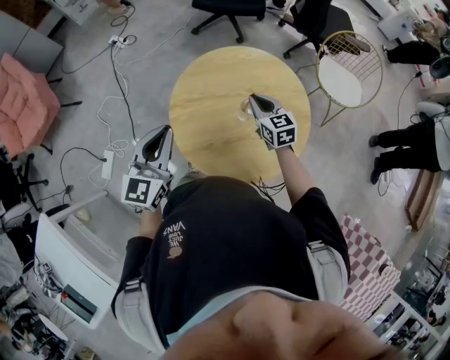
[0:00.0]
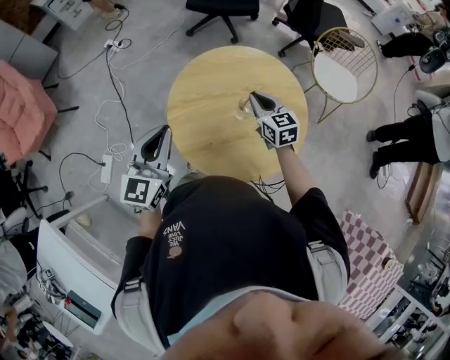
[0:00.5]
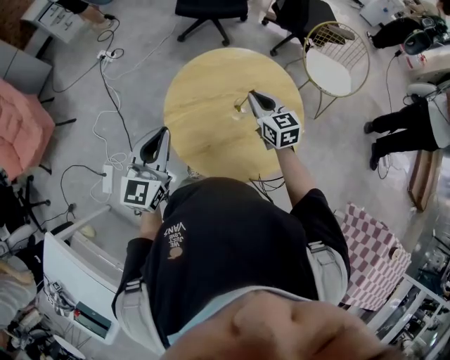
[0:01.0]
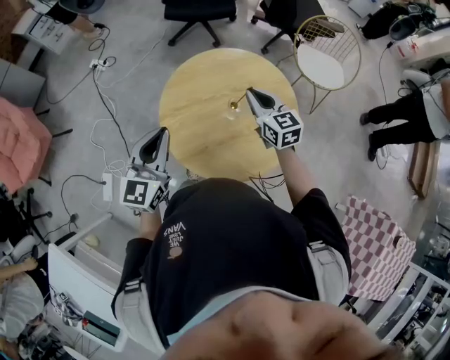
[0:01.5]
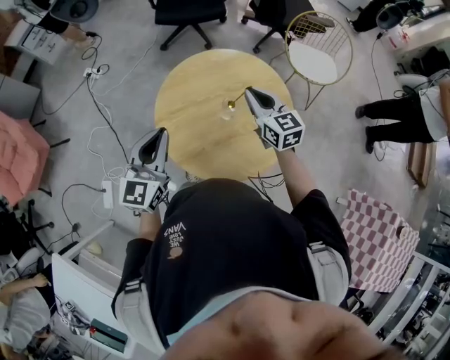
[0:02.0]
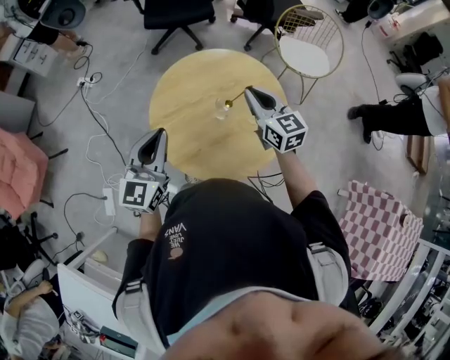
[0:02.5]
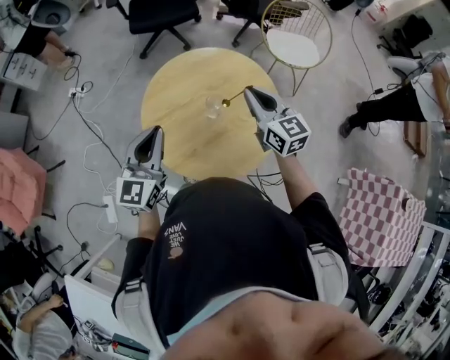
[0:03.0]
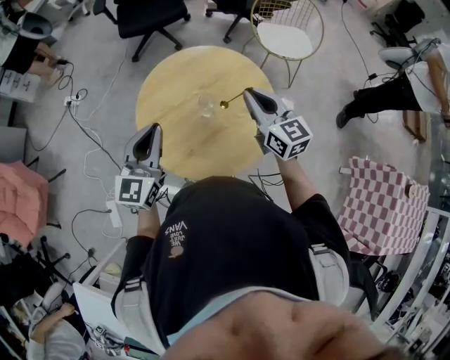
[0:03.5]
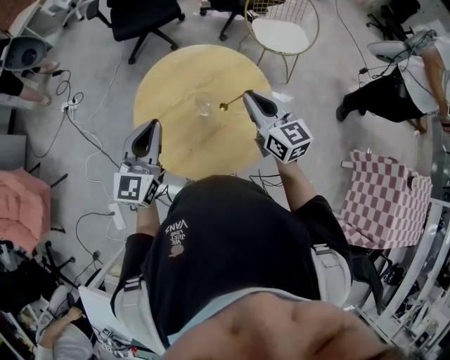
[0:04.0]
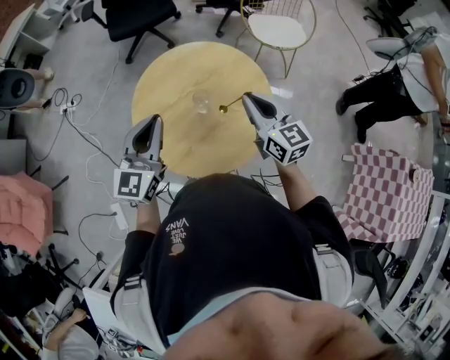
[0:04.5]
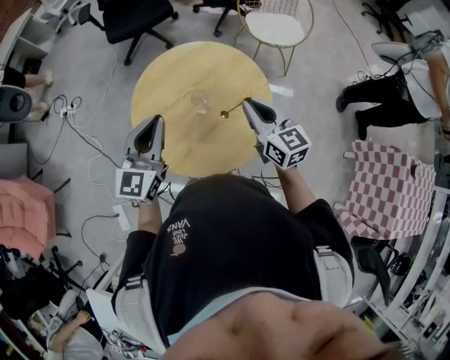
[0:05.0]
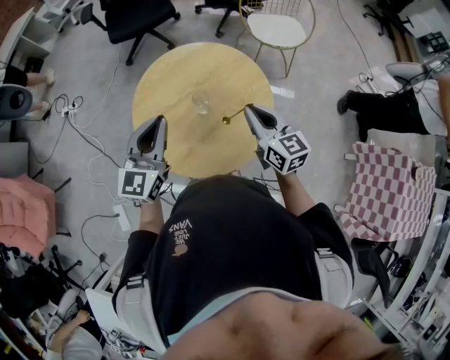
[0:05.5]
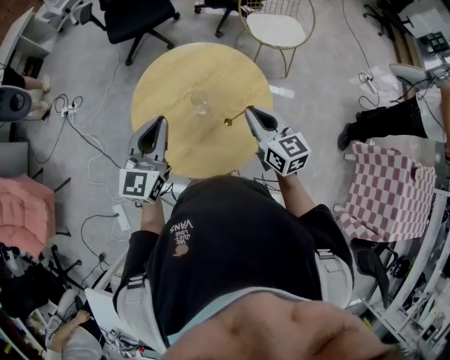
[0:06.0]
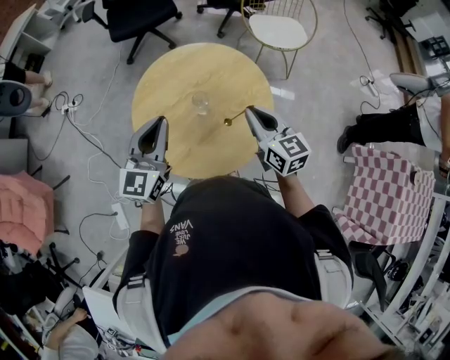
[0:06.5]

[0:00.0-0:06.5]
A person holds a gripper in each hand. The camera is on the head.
0.0 to 2.0 s: The right gripper travels upward by roughly 10 cm.
2.0 to 4.5 s: The right gripper goes some 10 cm to the right and backward, while the left gripper moves to the right and forward, about 10 cm.
4.5 to 6.5 s: The grippers make only small movements.

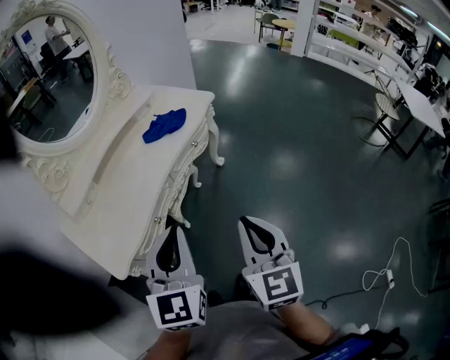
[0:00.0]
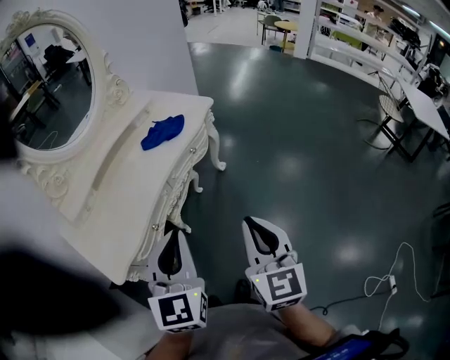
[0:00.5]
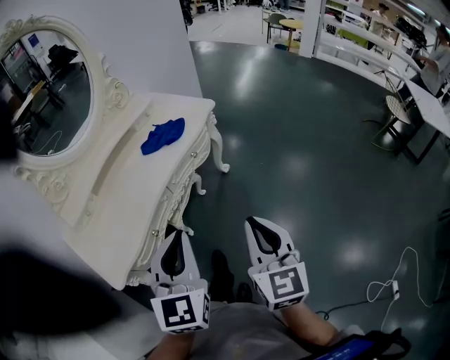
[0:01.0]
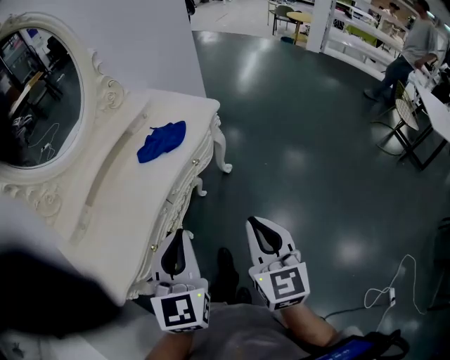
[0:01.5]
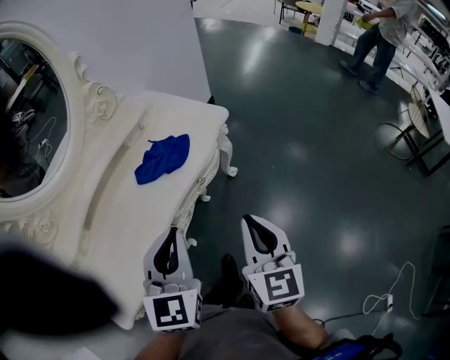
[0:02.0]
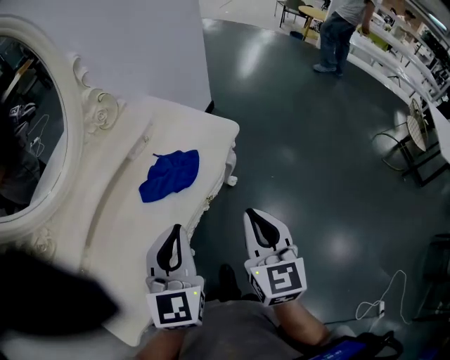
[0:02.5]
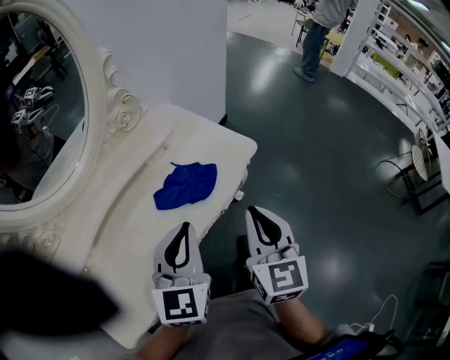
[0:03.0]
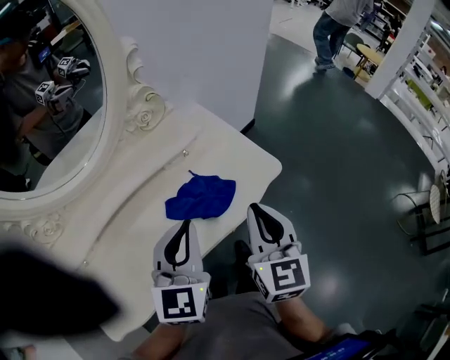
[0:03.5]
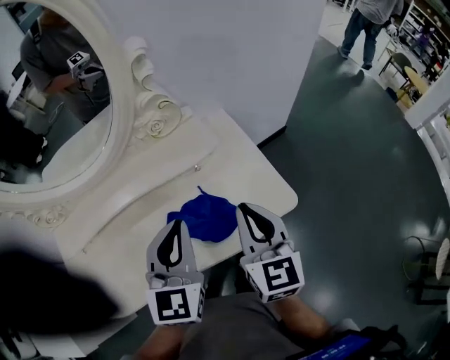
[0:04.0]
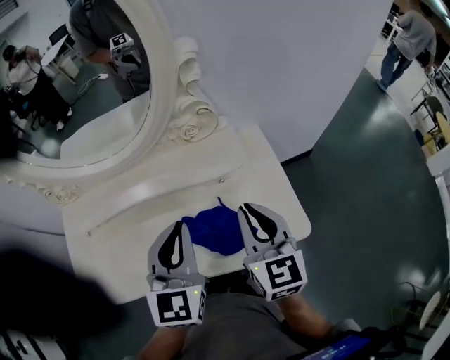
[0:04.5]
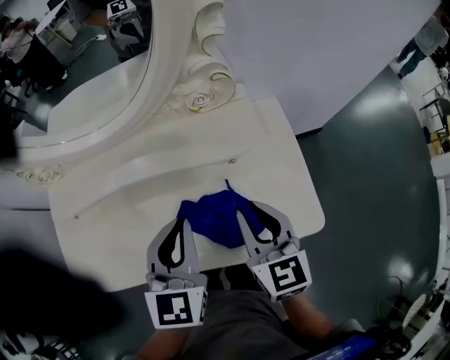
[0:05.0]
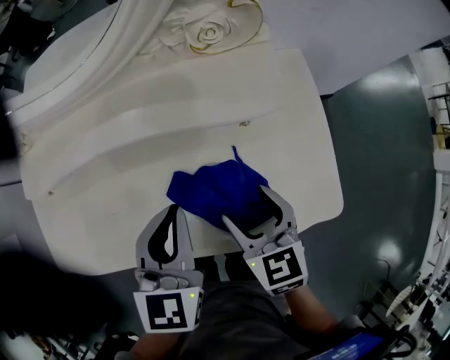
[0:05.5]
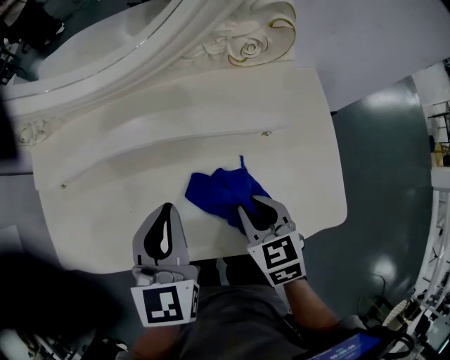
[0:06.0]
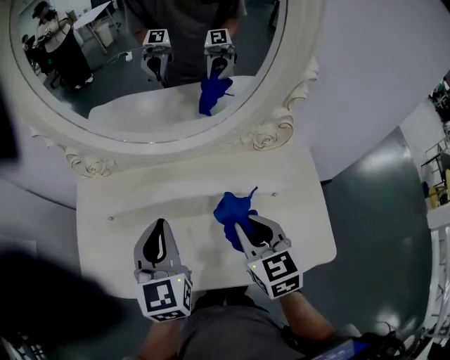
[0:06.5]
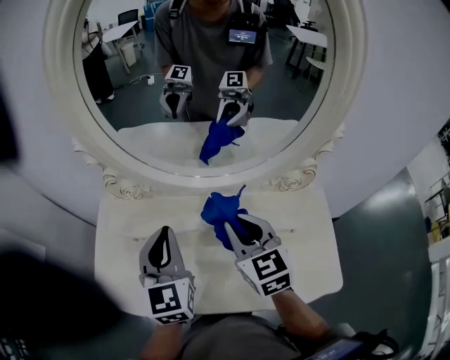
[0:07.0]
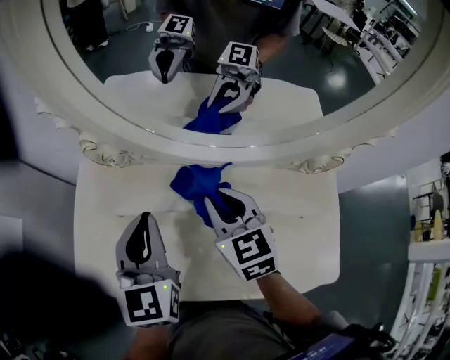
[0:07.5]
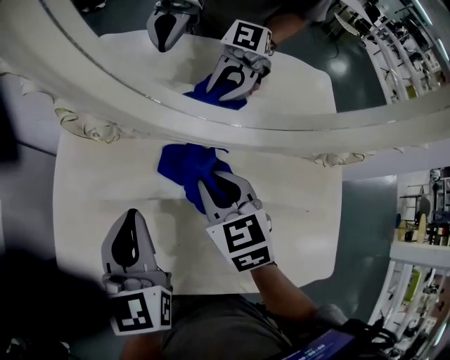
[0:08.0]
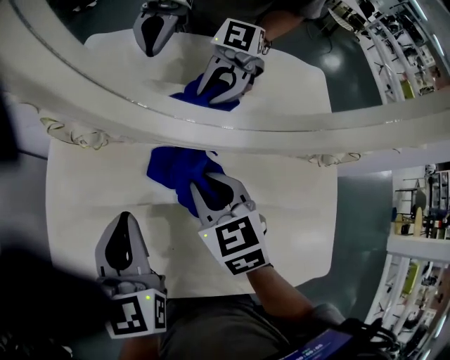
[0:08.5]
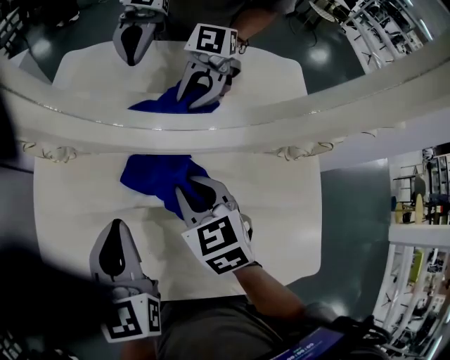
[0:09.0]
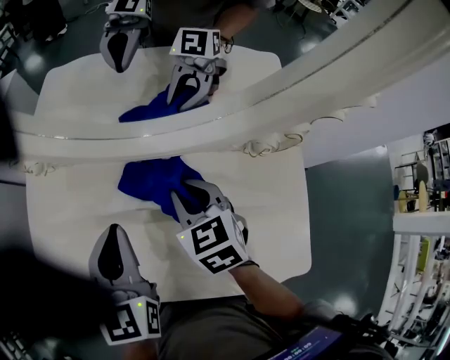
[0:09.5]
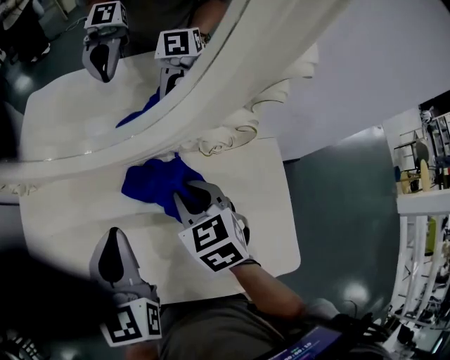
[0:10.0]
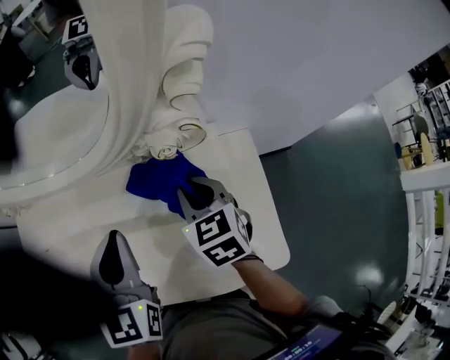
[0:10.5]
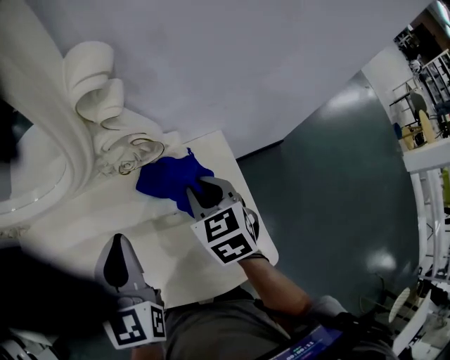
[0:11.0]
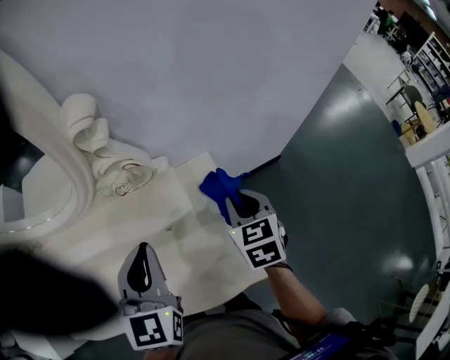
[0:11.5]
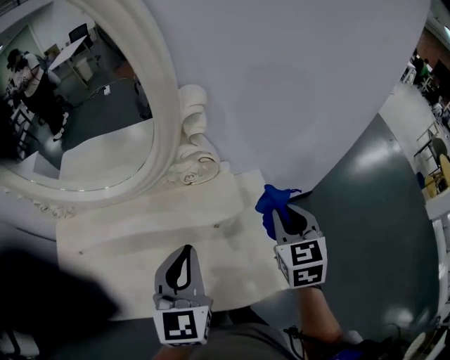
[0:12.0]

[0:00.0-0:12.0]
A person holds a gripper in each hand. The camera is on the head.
0.0 to 2.0 s: The two grippers go approximately 30 cm forward.
2.0 to 4.0 s: The right gripper changes place by some 35 cm, and swivels approximately 30 degrees; the left gripper ends up approximately 30 cm from where it was, and turns by some 30 degrees.
4.0 to 6.0 s: The right gripper heads downward, covering roughly 20 cm, angles its fingers downward, by about 30 degrees, and opens, then closes once more, while the left gripper ends up some 20 cm from where it was, and rotates roughly 30 degrees.
6.0 to 8.0 s: The left gripper heads to the left, upward and forward, covering approximately 25 cm, and rotates some 20 degrees. Meanwhile the right gripper goes roughly 35 cm forward, to the left and upward, and swivels roughly 20 degrees.
8.0 to 10.0 s: The grippers stay close to where they were, moving slightly.
10.0 to 12.0 s: The right gripper travels to the right by roughly 25 cm, and changes its angle by approximately 30 degrees. Meanwhile the left gripper is displaced to the right and backward by about 20 cm.

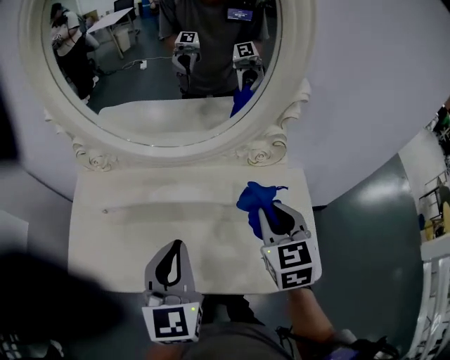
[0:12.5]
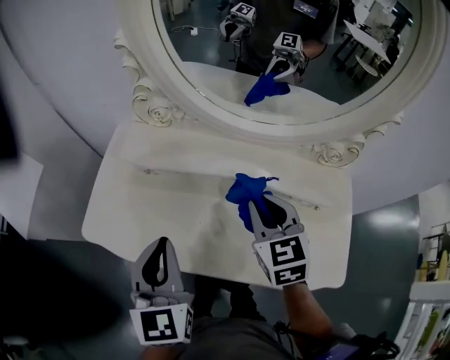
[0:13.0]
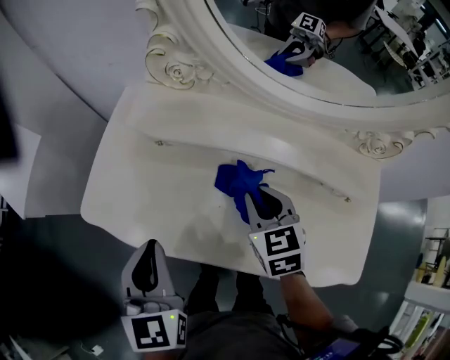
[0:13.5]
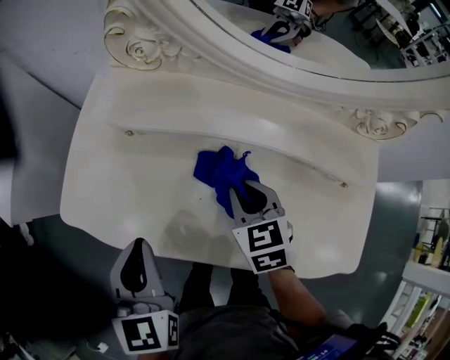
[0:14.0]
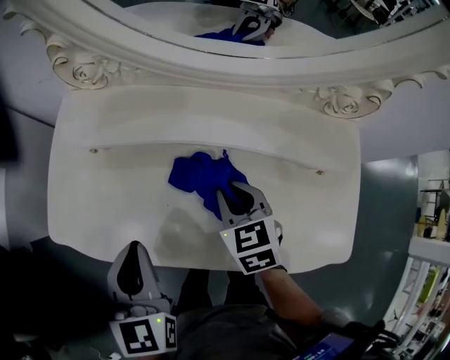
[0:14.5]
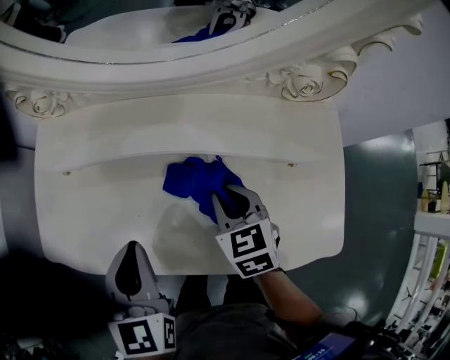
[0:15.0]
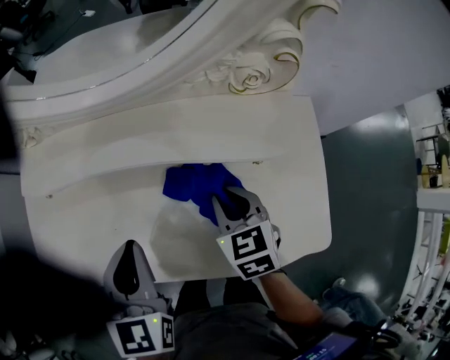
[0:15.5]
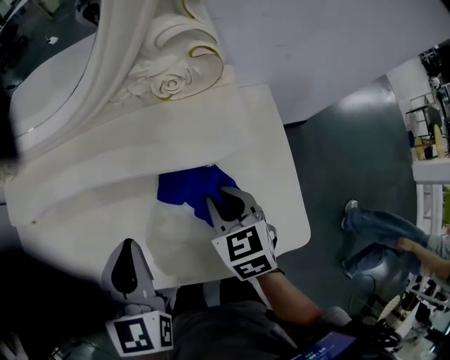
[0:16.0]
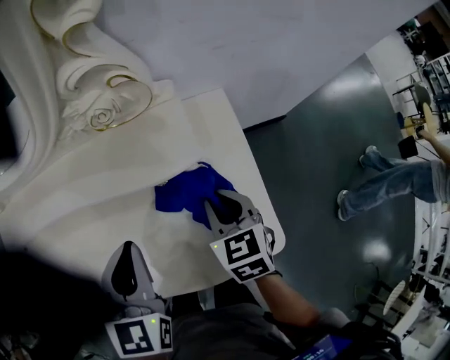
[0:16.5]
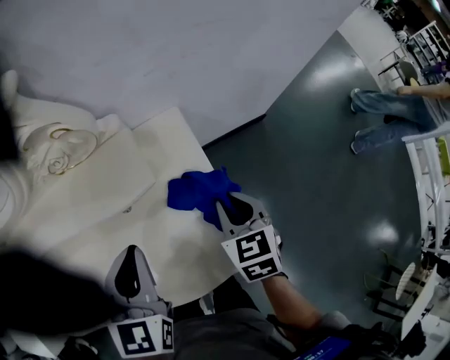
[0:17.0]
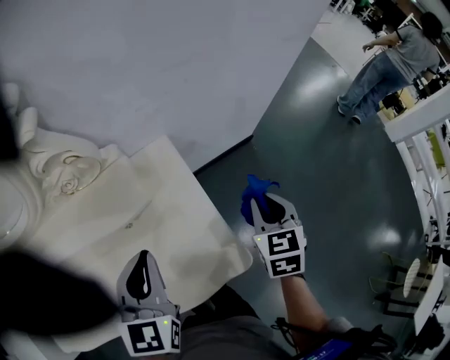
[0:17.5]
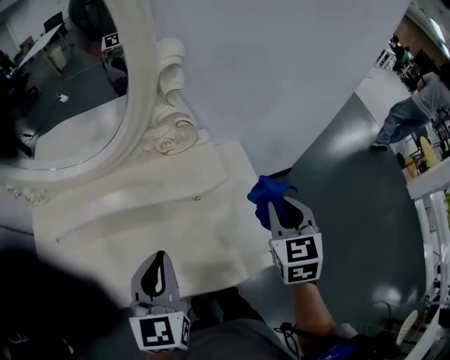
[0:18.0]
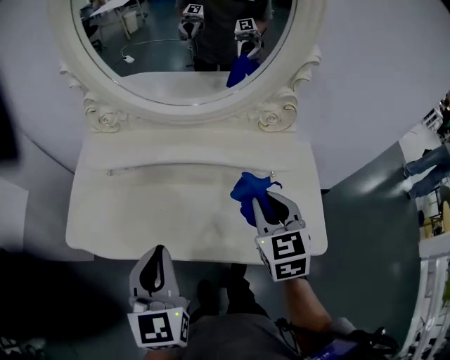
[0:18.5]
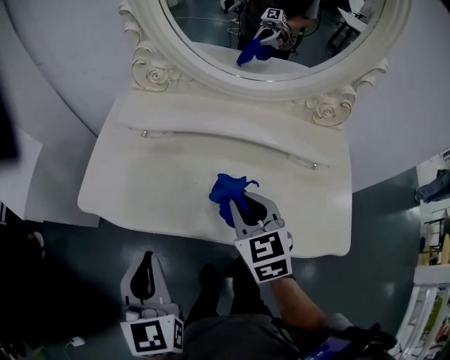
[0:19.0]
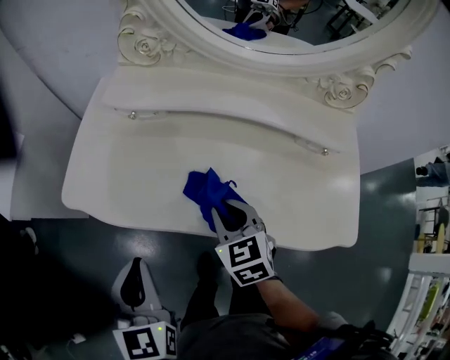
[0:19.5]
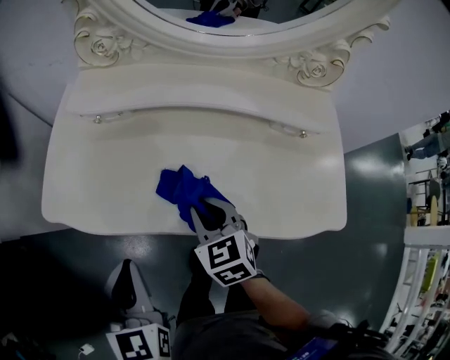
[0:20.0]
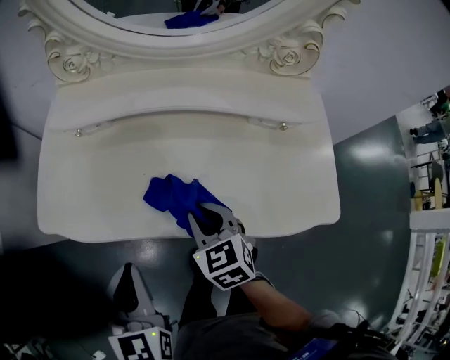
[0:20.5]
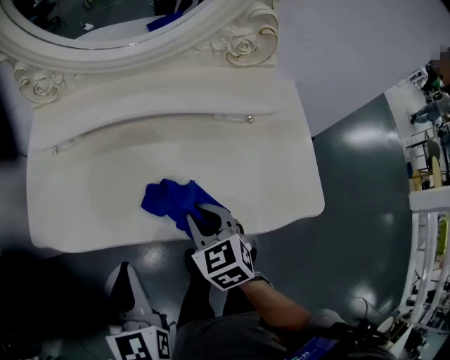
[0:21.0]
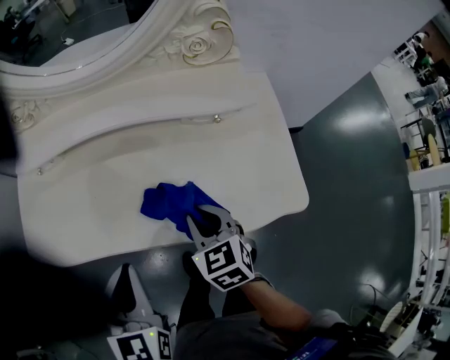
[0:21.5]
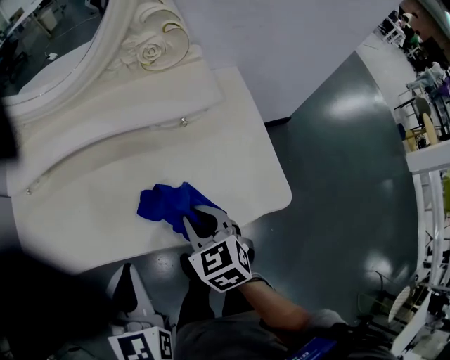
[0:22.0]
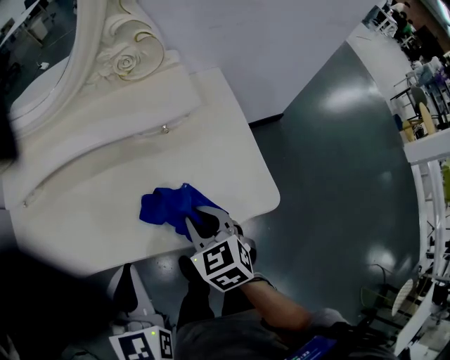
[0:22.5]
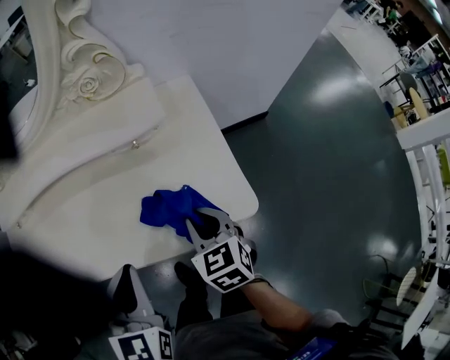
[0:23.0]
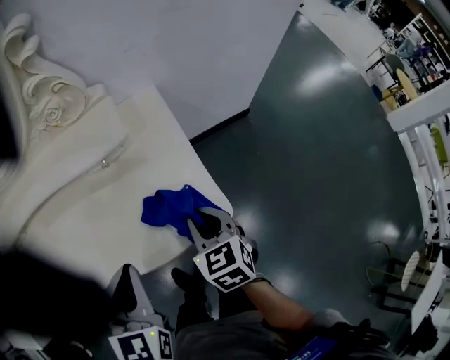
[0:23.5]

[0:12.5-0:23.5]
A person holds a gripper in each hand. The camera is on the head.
12.5 to 14.5 s: The right gripper moves downward and to the left, some 30 cm, and changes its angle by some 20 degrees, while the left gripper travels to the left and downward by some 20 cm, and turns by roughly 20 degrees.
14.5 to 16.0 s: Both grippers travel together to the right, some 30 cm. The left gripper rotates roughly 20 degrees.
16.0 to 18.0 s: The right gripper moves approximately 25 cm, and swivels approximately 30 degrees.
18.0 to 20.0 s: The left gripper shifts by approximately 35 cm, and turns by approximately 30 degrees. Meanwhile the right gripper shifts by approximately 50 cm, and changes its angle by about 40 degrees.
20.0 to 21.5 s: Both grippers move to the right, roughly 15 cm.
21.5 to 23.5 s: Both grippers move to the right, some 25 cm.
